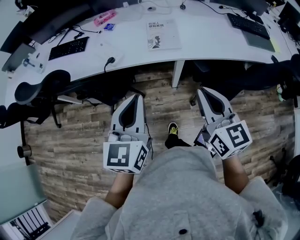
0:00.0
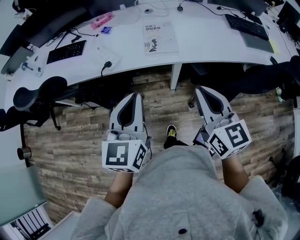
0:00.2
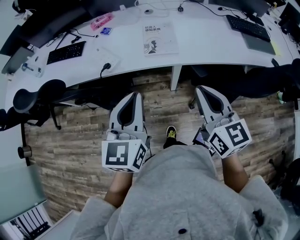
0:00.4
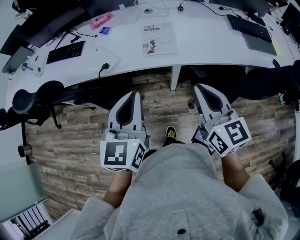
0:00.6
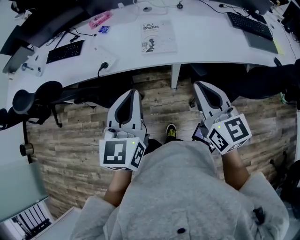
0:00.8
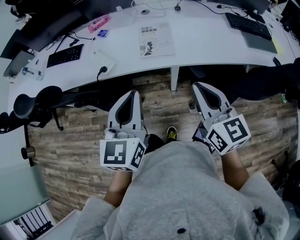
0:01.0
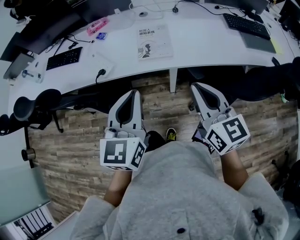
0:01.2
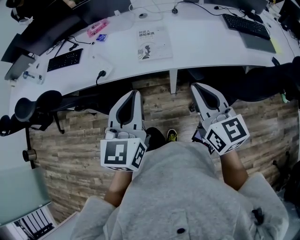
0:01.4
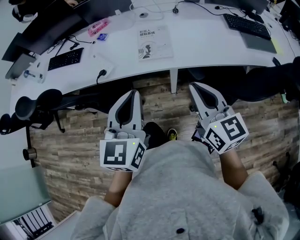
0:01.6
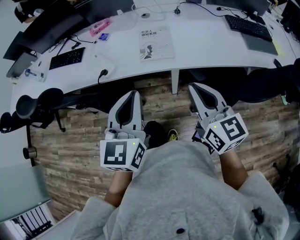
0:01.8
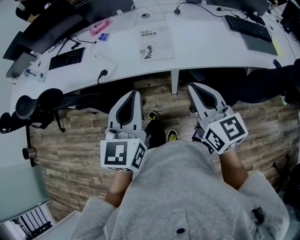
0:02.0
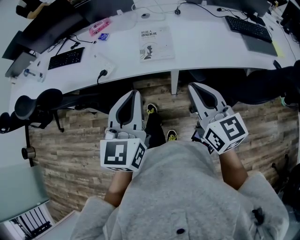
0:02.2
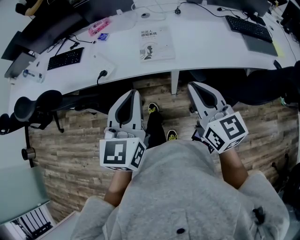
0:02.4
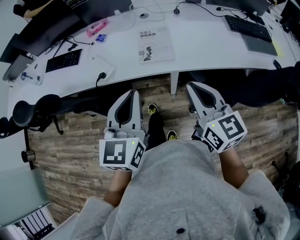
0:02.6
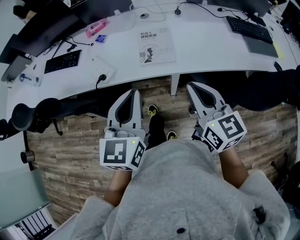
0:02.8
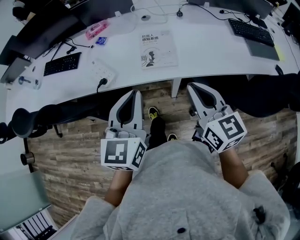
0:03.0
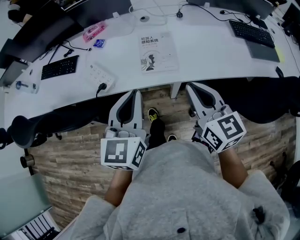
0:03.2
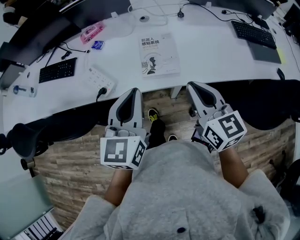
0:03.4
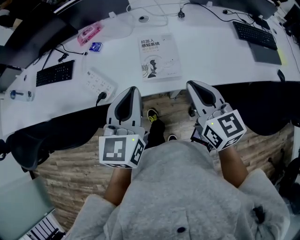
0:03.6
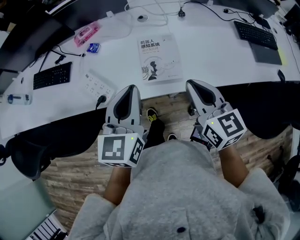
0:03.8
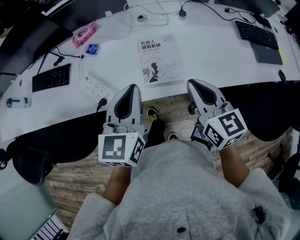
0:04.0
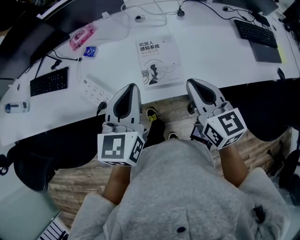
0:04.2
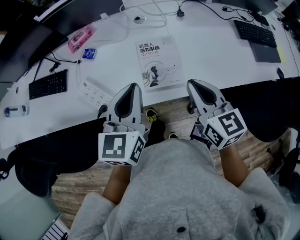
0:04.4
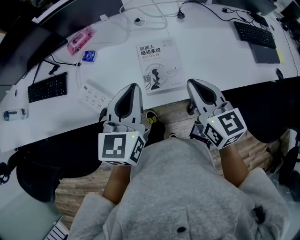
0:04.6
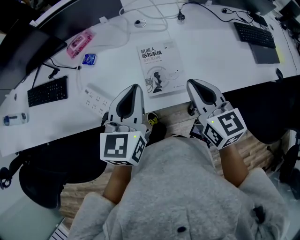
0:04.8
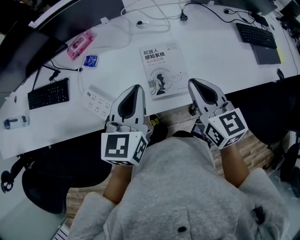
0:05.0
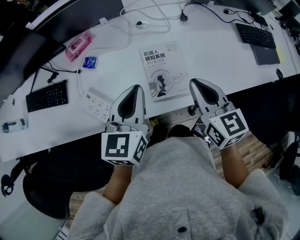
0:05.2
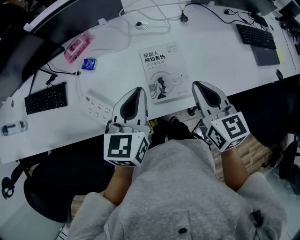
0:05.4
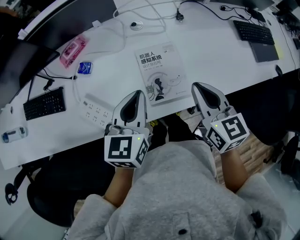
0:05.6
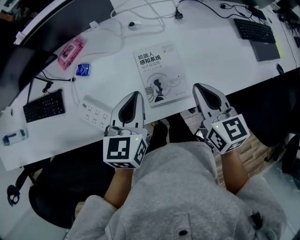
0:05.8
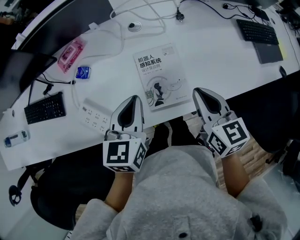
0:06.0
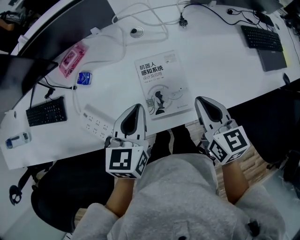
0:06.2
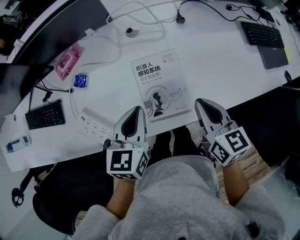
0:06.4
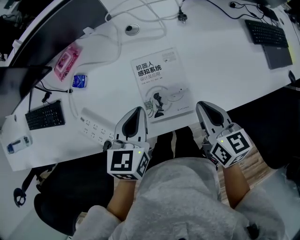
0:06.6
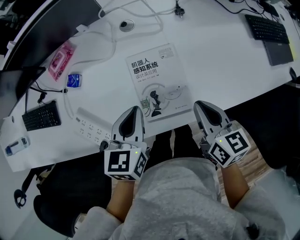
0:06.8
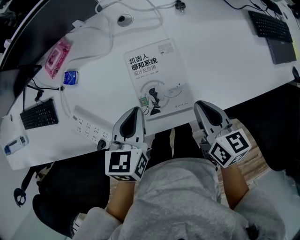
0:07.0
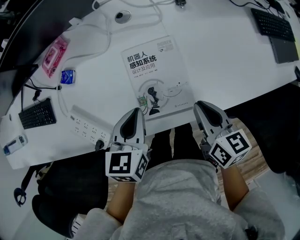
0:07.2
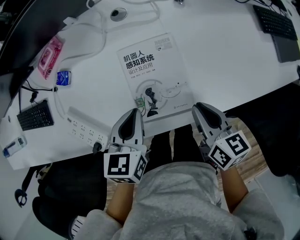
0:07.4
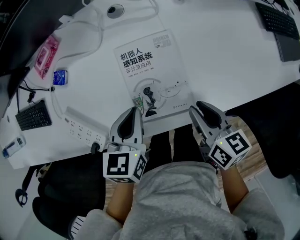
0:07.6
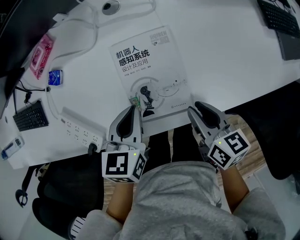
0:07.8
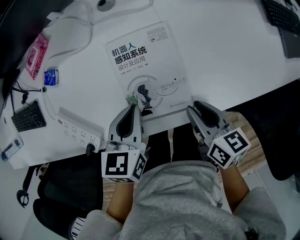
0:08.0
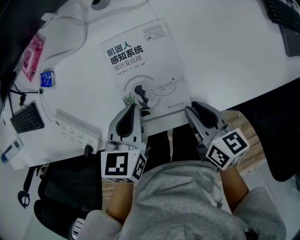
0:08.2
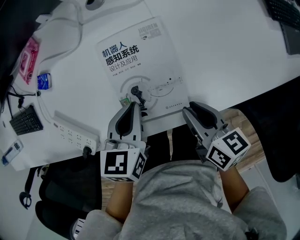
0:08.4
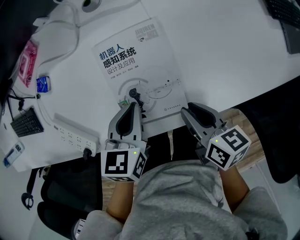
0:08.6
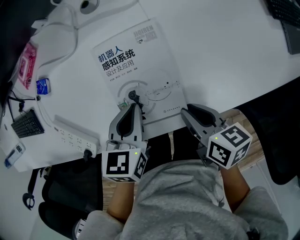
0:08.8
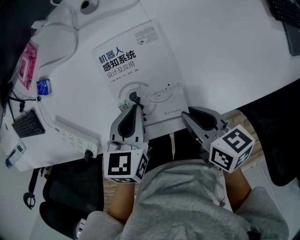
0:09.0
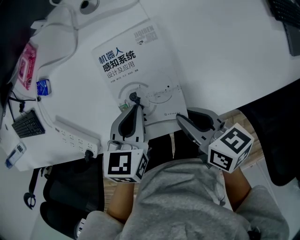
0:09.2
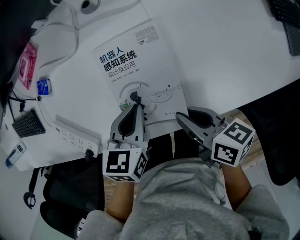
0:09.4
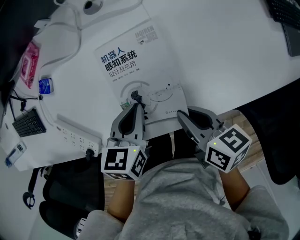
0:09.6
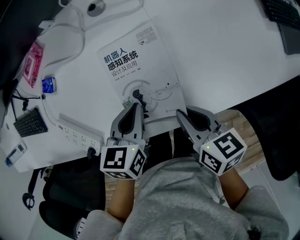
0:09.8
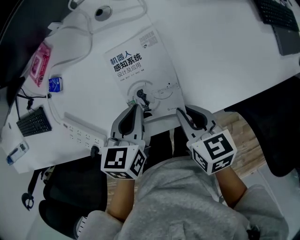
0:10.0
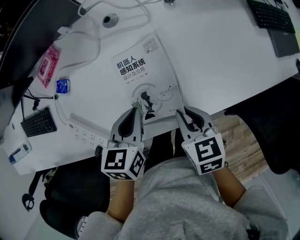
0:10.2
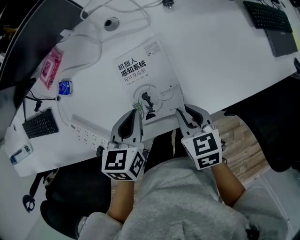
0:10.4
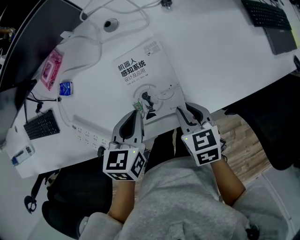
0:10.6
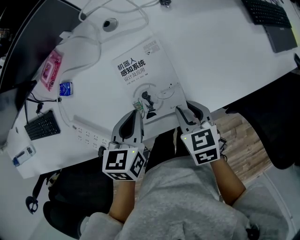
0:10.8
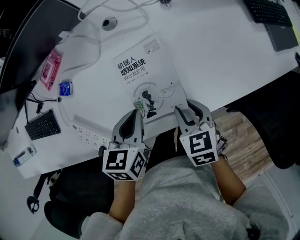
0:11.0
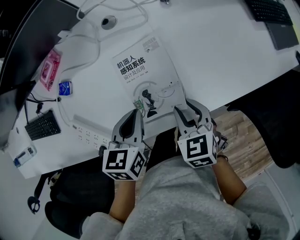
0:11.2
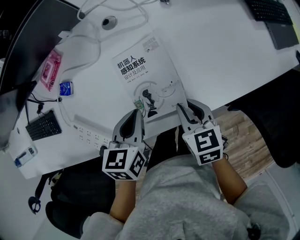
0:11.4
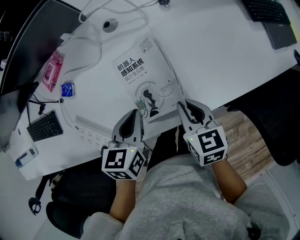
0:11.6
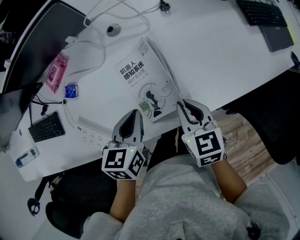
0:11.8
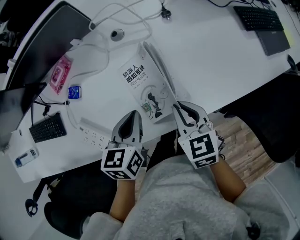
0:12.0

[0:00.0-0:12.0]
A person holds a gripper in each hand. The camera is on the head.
0:00.0 to 0:01.6: The left gripper travels to the right and forward by roughly 10 cm, while the right gripper heads forward and to the right, covering about 10 cm.
0:01.6 to 0:03.0: The two grippers go approximately 5 cm forward.
0:03.0 to 0:04.4: The two grippers go roughly 15 cm forward.
0:04.4 to 0:06.0: The right gripper goes some 5 cm forward; the left gripper goes approximately 10 cm forward and downward.
0:06.0 to 0:07.6: The two grippers go about 15 cm downward. The right gripper rotates about 20 degrees.
0:07.6 to 0:09.0: The left gripper goes roughly 5 cm downward.
0:09.0 to 0:10.4: The left gripper shifts approximately 5 cm upward. The right gripper turns by approximately 30 degrees.
0:10.4 to 0:12.0: The right gripper moves upward, some 5 cm.

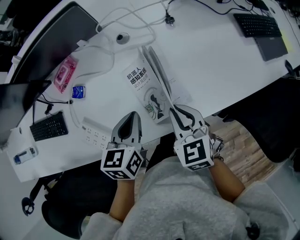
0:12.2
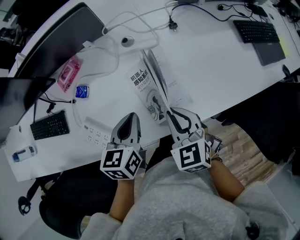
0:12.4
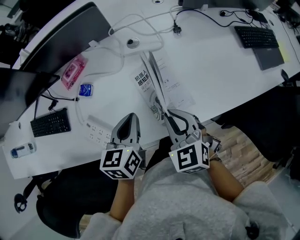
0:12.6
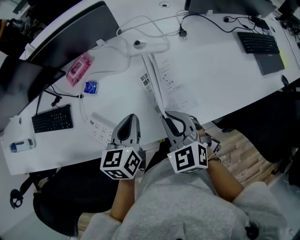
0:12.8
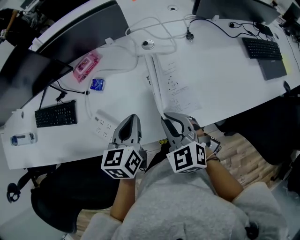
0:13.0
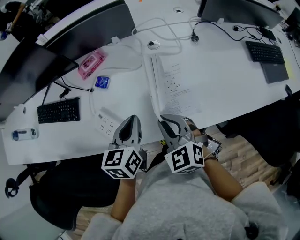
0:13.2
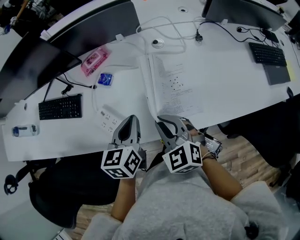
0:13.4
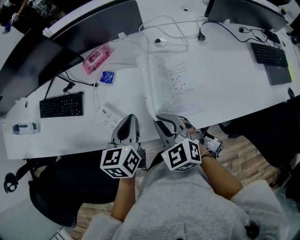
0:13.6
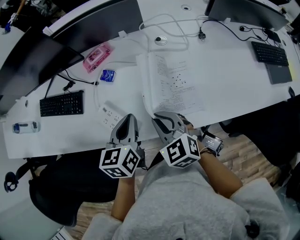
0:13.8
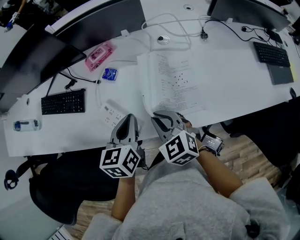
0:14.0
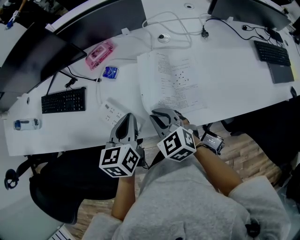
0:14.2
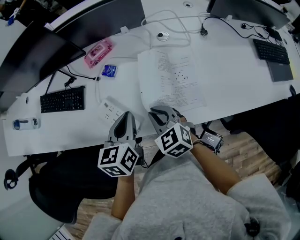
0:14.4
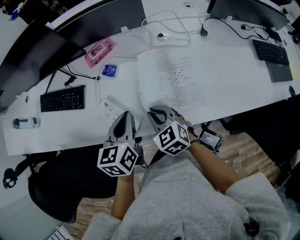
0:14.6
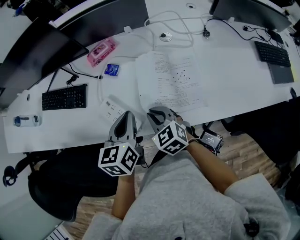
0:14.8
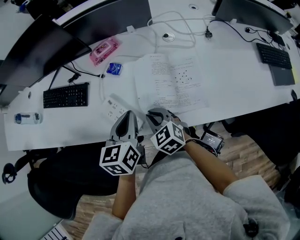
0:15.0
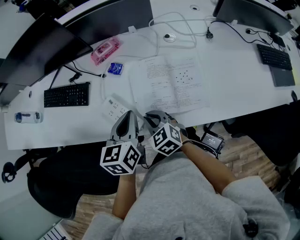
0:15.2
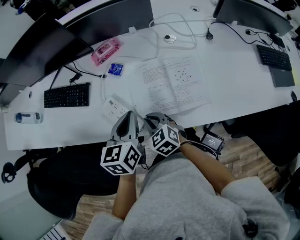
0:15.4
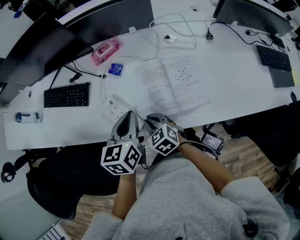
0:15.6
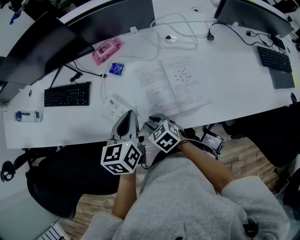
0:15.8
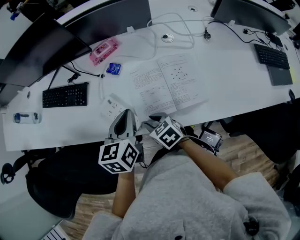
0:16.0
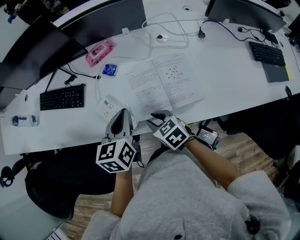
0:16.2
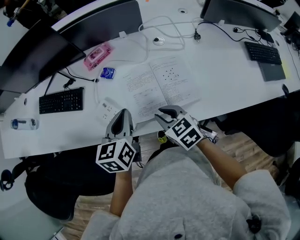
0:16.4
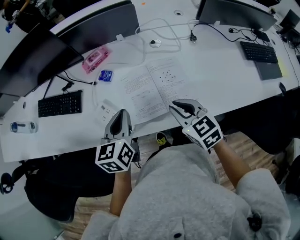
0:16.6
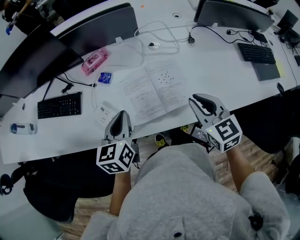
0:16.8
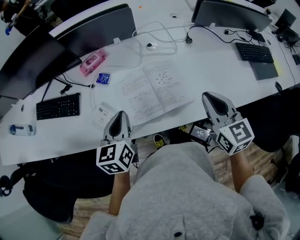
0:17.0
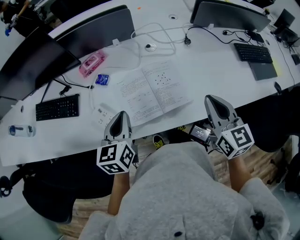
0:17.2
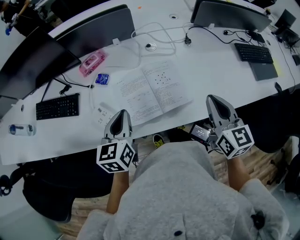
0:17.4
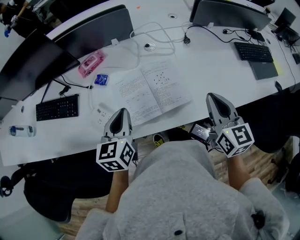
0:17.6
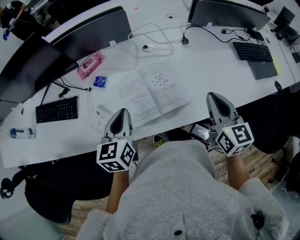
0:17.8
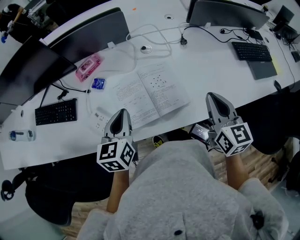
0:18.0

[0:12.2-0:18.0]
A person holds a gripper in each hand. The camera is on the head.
0:12.2 to 0:13.6: The grippers both shift to the left by some 15 cm. The right gripper rotates some 30 degrees.
0:13.6 to 0:15.0: The right gripper heads downward and to the left, covering roughly 10 cm.
0:15.0 to 0:16.6: The right gripper shifts about 15 cm to the right and upward.
0:16.6 to 0:18.0: The right gripper shifts roughly 20 cm to the right and upward, and swivels some 40 degrees.

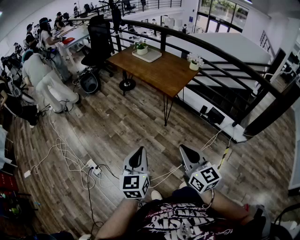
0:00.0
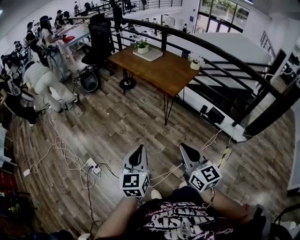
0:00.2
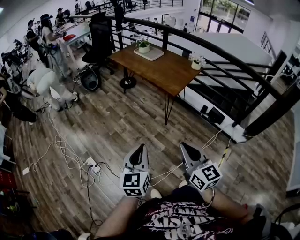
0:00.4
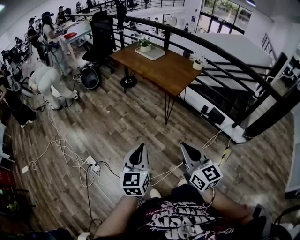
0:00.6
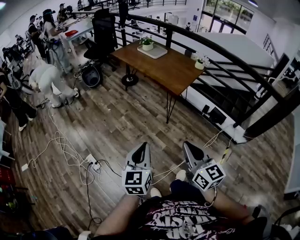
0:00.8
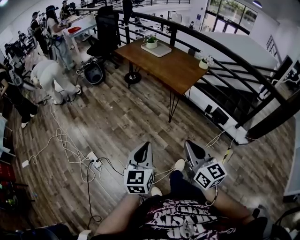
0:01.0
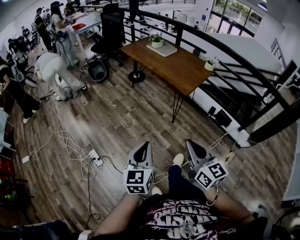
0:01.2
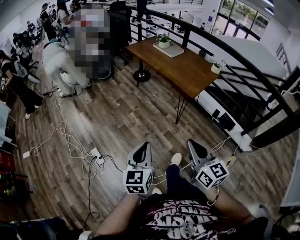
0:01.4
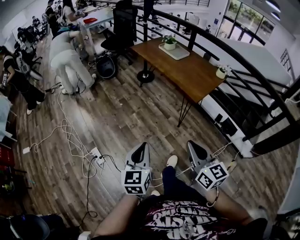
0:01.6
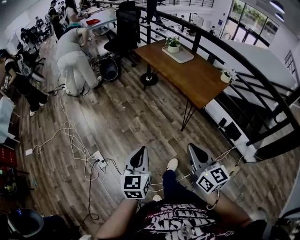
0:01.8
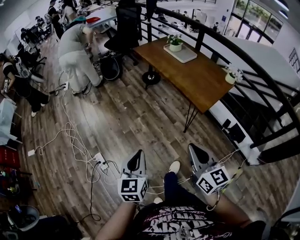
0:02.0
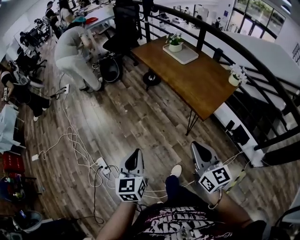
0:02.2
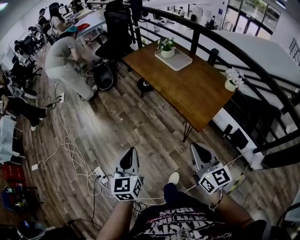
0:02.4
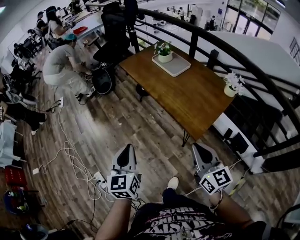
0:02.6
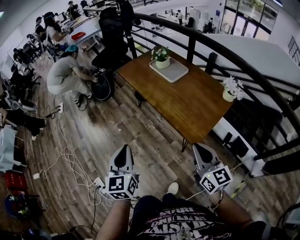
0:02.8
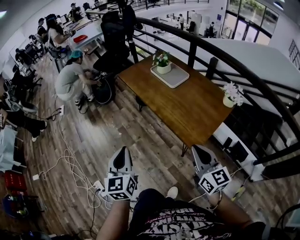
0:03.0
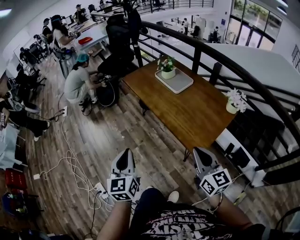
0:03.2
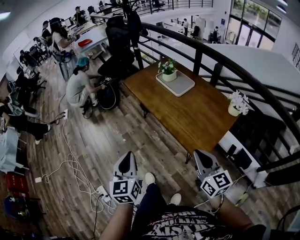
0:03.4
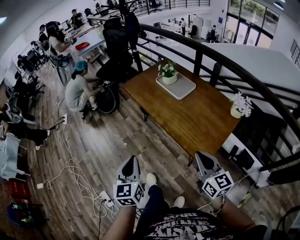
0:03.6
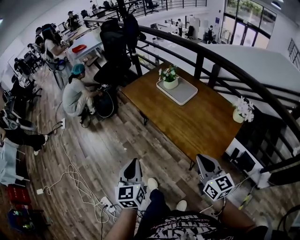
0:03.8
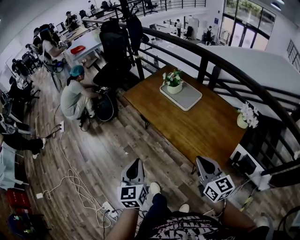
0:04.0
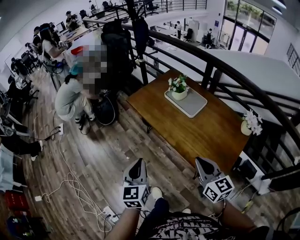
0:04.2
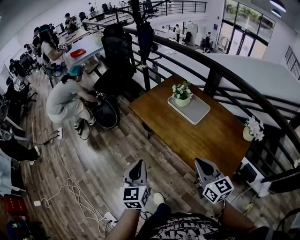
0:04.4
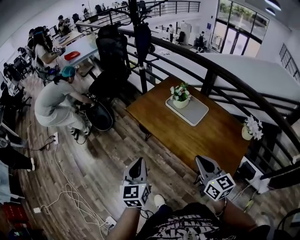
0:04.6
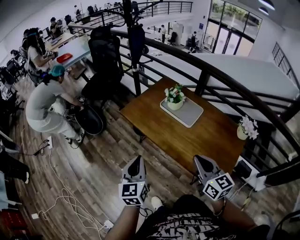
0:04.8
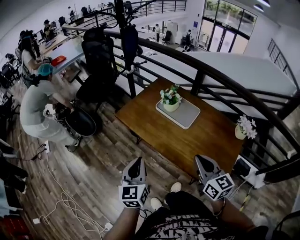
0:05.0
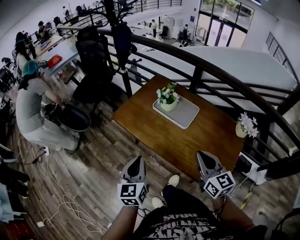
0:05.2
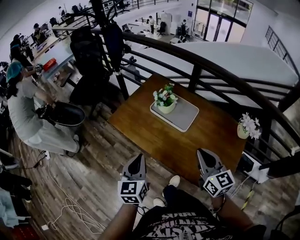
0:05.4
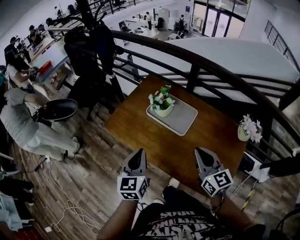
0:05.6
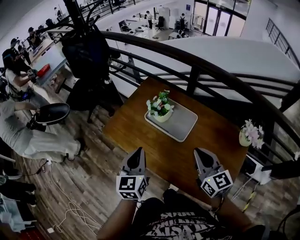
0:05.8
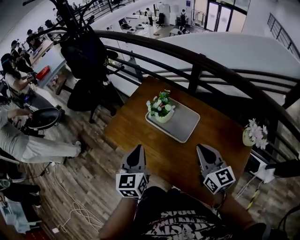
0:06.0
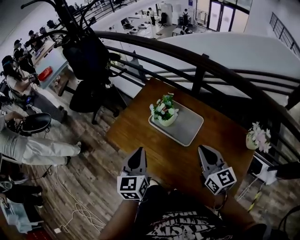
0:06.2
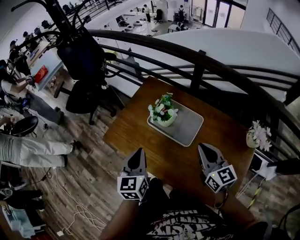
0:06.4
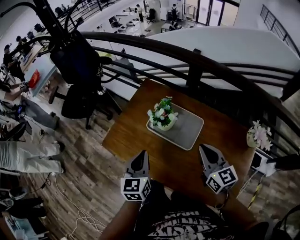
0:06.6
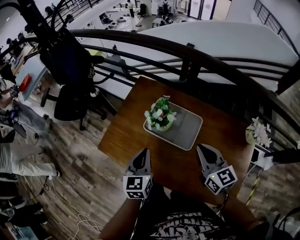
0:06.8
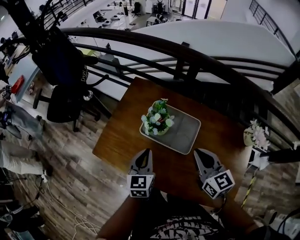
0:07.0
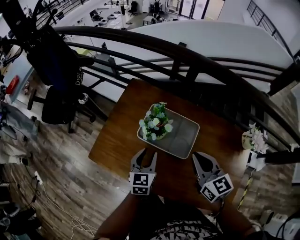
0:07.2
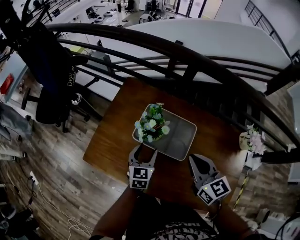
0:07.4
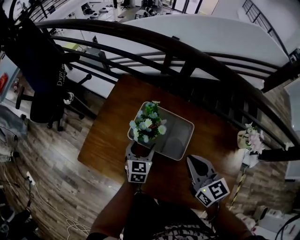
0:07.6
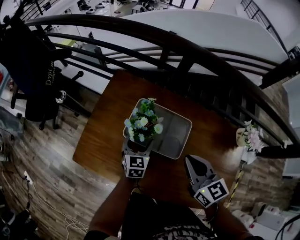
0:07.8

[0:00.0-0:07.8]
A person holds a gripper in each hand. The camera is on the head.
0:00.0 to 0:01.6: The left gripper goes roughly 10 cm to the left and forward. Meanwhile the right gripper is displaced forward and to the left by some 15 cm.
0:01.6 to 0:03.2: The left gripper shifts some 40 cm forward. The right gripper heads forward and to the right, covering approximately 40 cm.
0:03.2 to 0:04.6: The left gripper travels forward by some 30 cm. The right gripper shifts some 30 cm forward and to the left.
0:04.6 to 0:06.2: The grippers both shift forward and to the right by about 30 cm.
0:06.2 to 0:07.8: The left gripper moves downward and forward, about 30 cm, swivels approximately 30 degrees, and opens. Meanwhile the right gripper moves forward and downward, some 10 cm.
